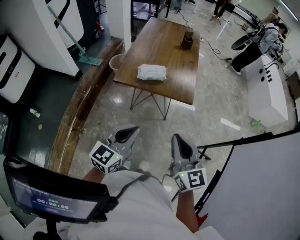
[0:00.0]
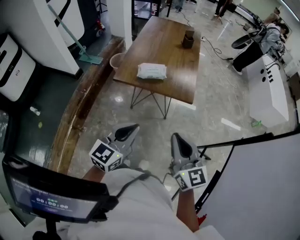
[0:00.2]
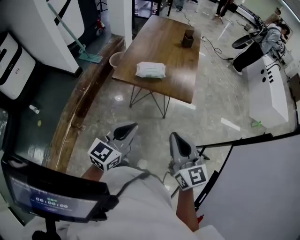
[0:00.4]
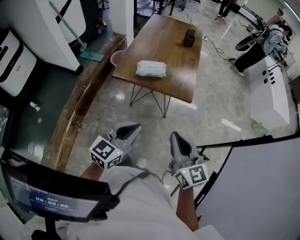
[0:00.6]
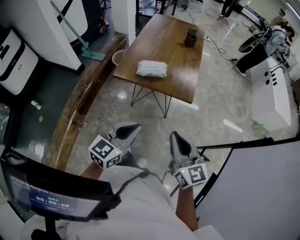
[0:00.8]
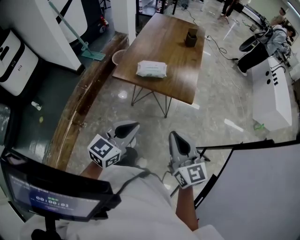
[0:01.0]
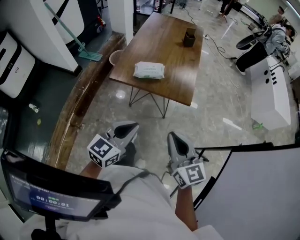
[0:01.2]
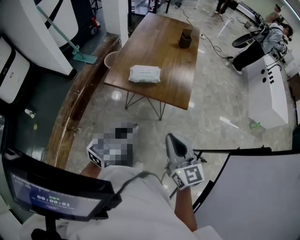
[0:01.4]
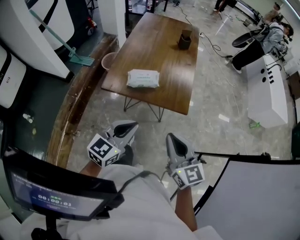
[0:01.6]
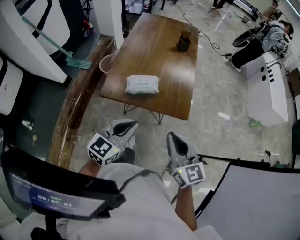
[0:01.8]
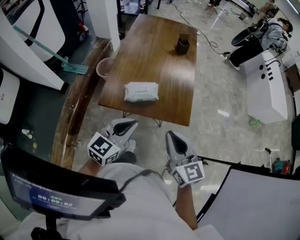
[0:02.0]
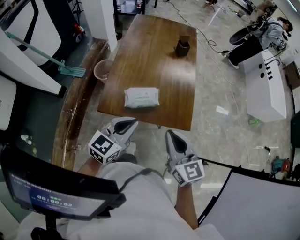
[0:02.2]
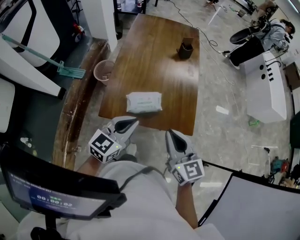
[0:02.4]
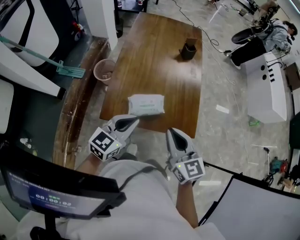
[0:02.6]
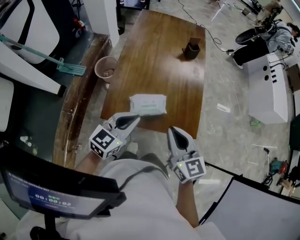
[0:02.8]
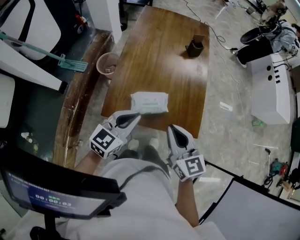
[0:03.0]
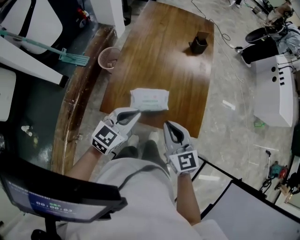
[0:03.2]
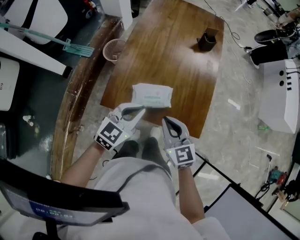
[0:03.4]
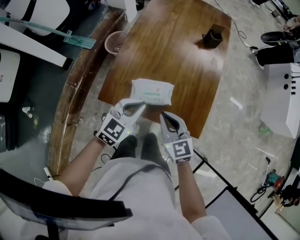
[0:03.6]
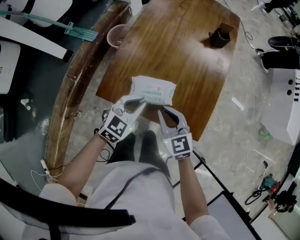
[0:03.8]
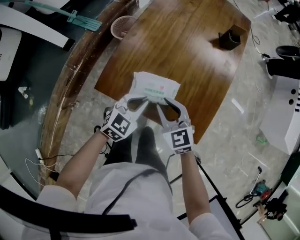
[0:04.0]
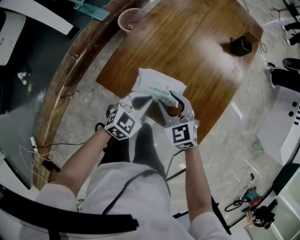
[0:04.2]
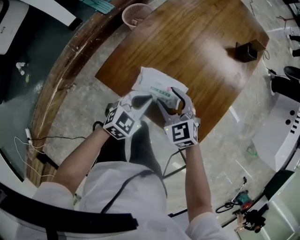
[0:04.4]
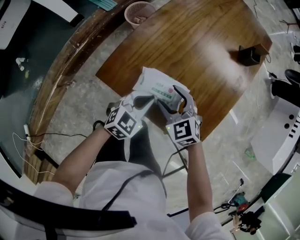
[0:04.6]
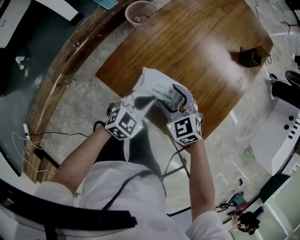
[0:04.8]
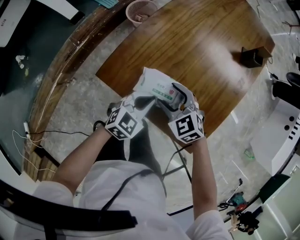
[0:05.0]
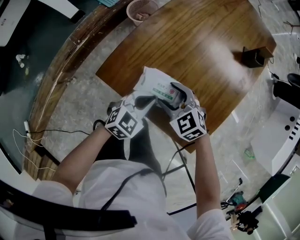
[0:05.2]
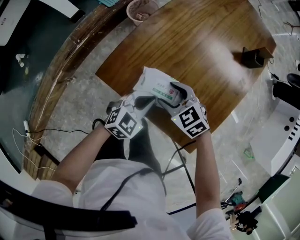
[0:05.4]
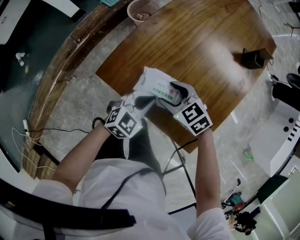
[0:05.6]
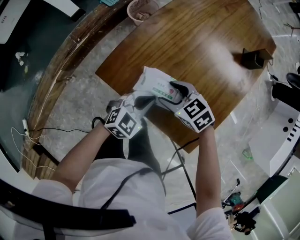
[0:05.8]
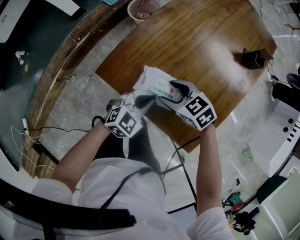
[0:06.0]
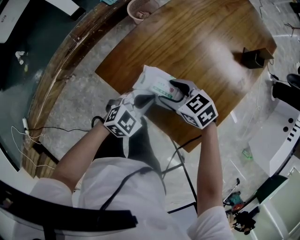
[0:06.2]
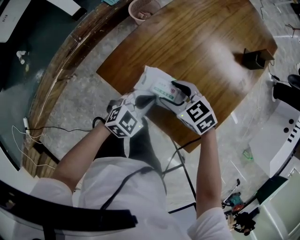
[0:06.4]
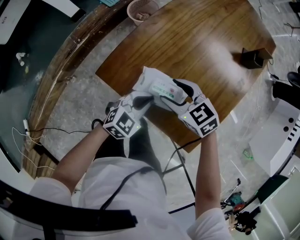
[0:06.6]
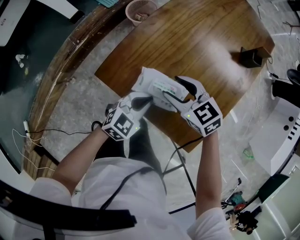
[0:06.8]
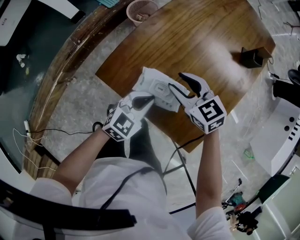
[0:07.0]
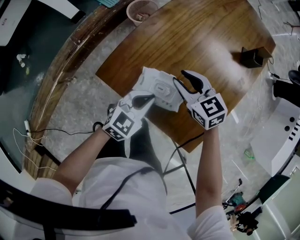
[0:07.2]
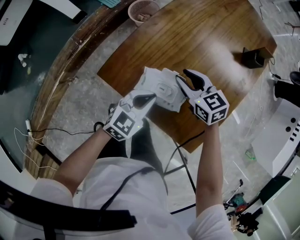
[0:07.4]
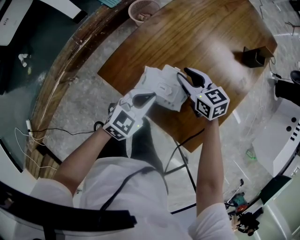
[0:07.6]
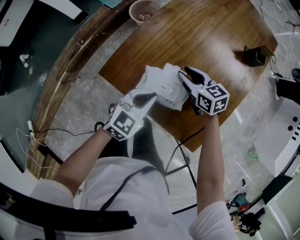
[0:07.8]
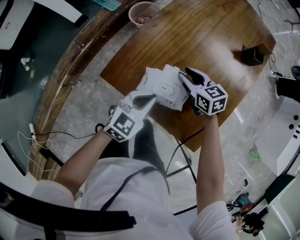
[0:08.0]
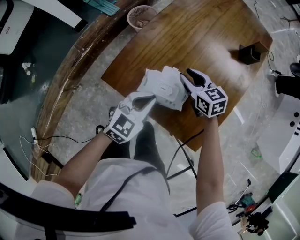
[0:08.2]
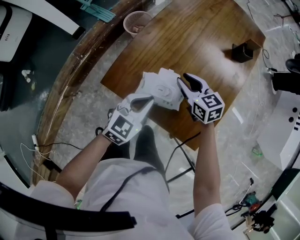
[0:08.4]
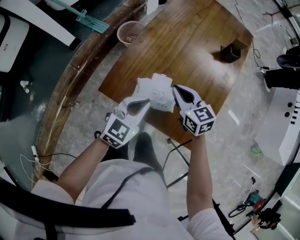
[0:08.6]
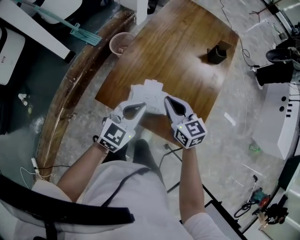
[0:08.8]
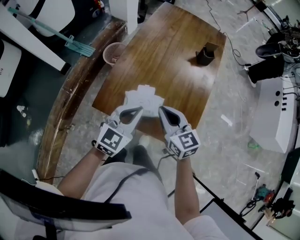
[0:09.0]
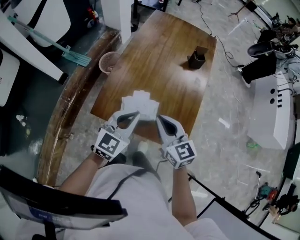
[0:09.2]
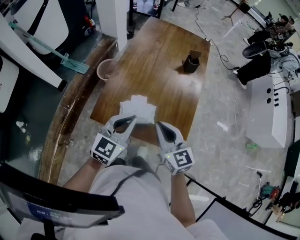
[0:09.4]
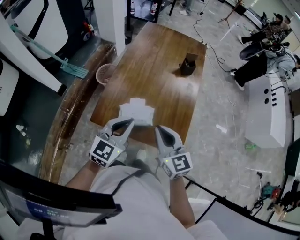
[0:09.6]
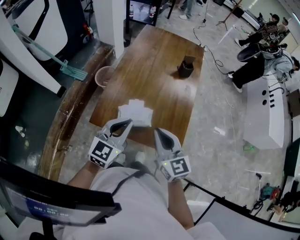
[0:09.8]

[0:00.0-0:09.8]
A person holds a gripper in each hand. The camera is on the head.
0:00.0 to 0:01.4: The two grippers go roughly 10 cm forward.
0:01.4 to 0:02.8: Both grippers move forward and to the left, roughly 30 cm.
0:02.8 to 0:04.2: The left gripper travels downward by some 20 cm, and rotates roughly 20 degrees, while the right gripper travels downward and forward by roughly 25 cm, rotates roughly 50 degrees, and opens its fingers.
0:04.2 to 0:05.6: The right gripper changes place by approximately 5 cm, swivels some 30 degrees, and opens up.
0:05.6 to 0:07.0: The right gripper goes roughly 5 cm upward.
0:07.0 to 0:08.4: The left gripper is displaced upward by roughly 5 cm.
0:08.4 to 0:09.8: The left gripper goes about 15 cm upward. The right gripper is displaced upward and backward by approximately 25 cm, changes its angle by approximately 30 degrees, and closes up.

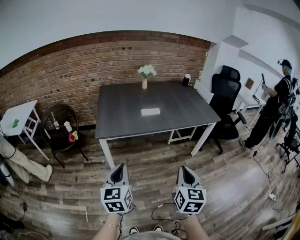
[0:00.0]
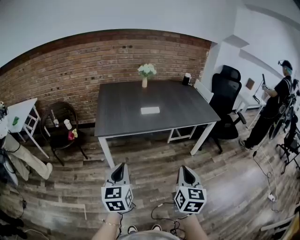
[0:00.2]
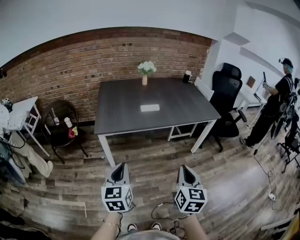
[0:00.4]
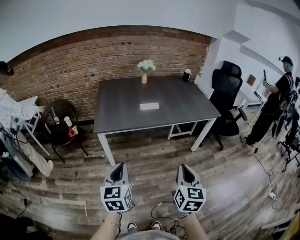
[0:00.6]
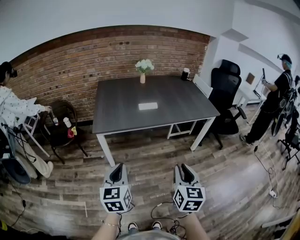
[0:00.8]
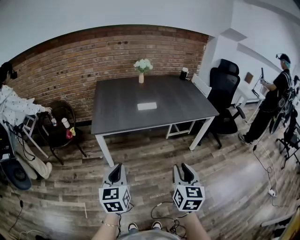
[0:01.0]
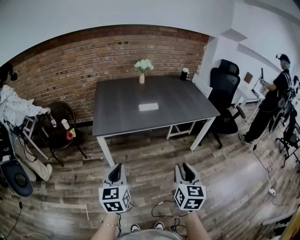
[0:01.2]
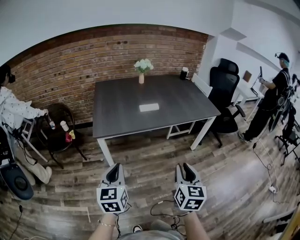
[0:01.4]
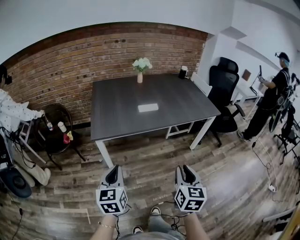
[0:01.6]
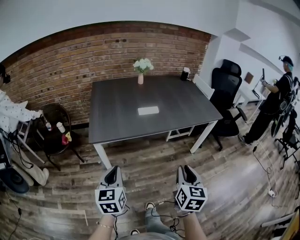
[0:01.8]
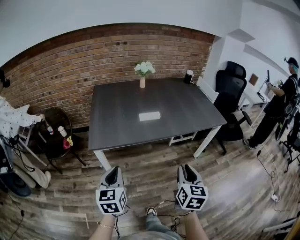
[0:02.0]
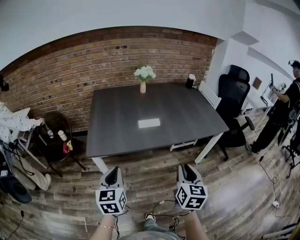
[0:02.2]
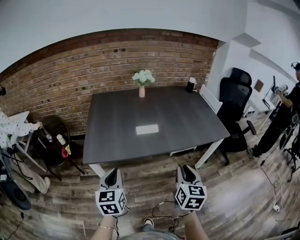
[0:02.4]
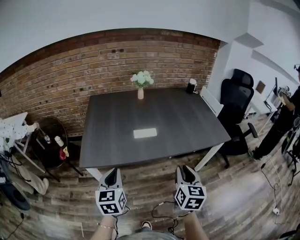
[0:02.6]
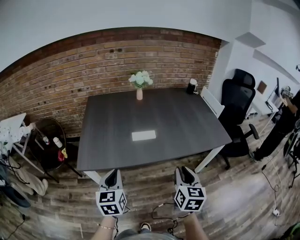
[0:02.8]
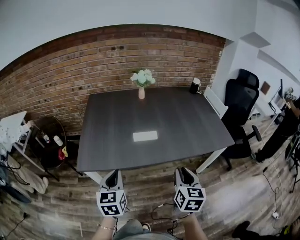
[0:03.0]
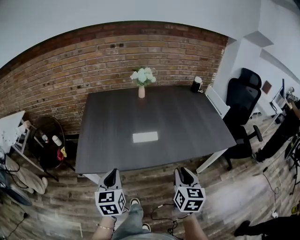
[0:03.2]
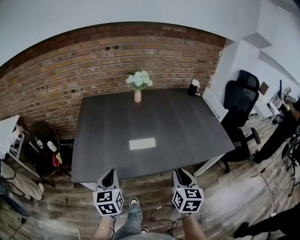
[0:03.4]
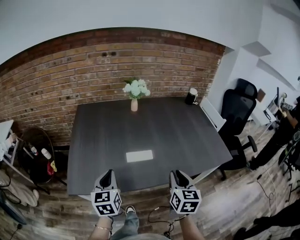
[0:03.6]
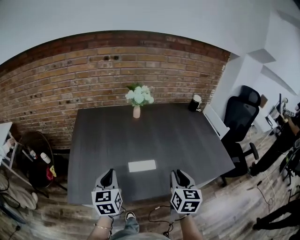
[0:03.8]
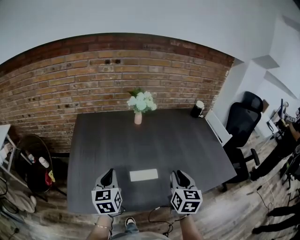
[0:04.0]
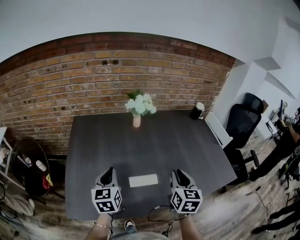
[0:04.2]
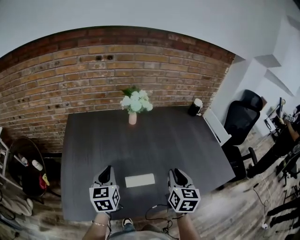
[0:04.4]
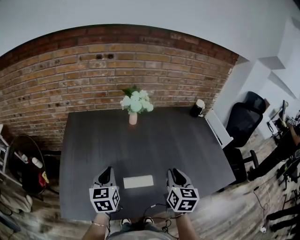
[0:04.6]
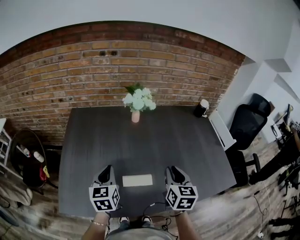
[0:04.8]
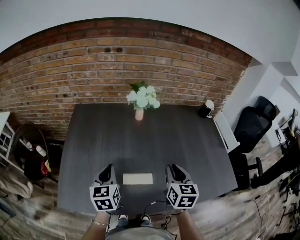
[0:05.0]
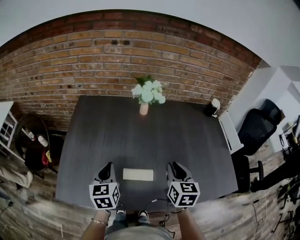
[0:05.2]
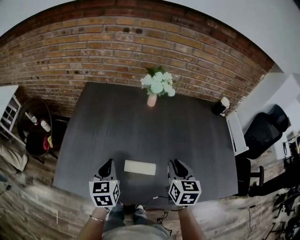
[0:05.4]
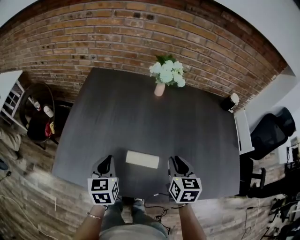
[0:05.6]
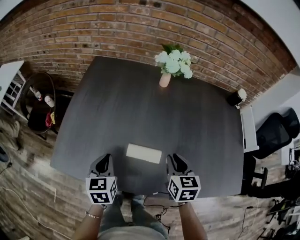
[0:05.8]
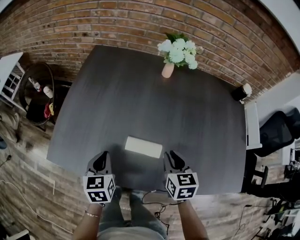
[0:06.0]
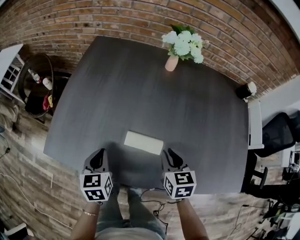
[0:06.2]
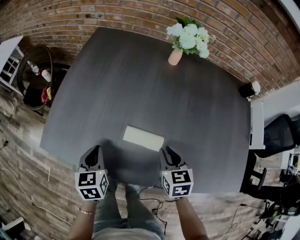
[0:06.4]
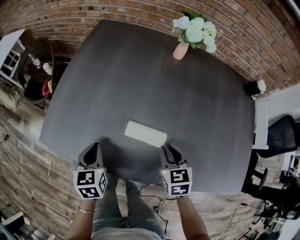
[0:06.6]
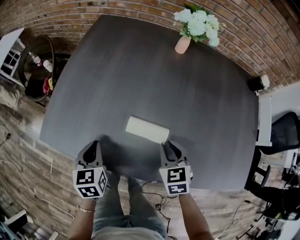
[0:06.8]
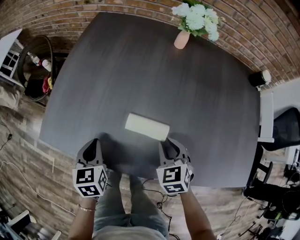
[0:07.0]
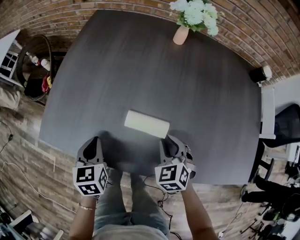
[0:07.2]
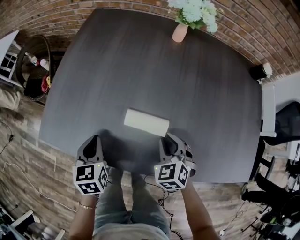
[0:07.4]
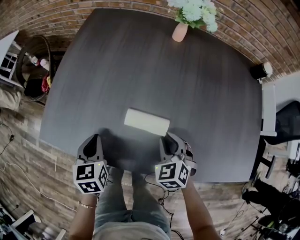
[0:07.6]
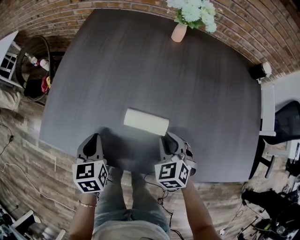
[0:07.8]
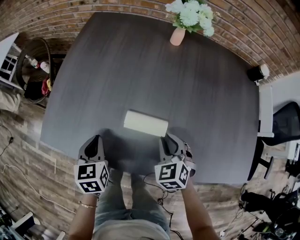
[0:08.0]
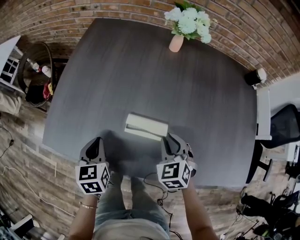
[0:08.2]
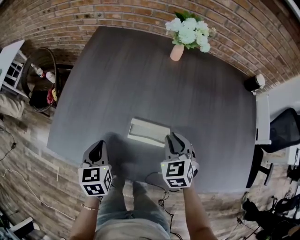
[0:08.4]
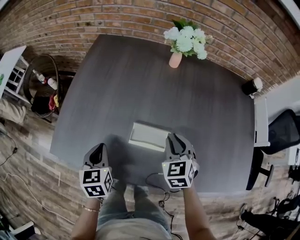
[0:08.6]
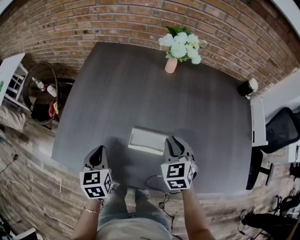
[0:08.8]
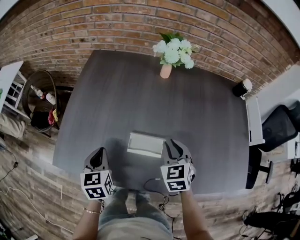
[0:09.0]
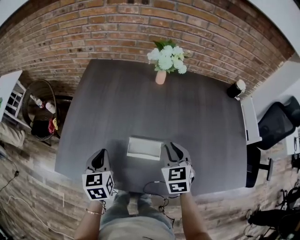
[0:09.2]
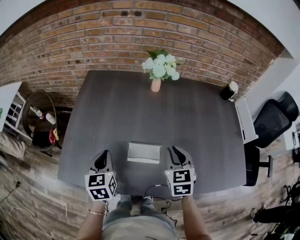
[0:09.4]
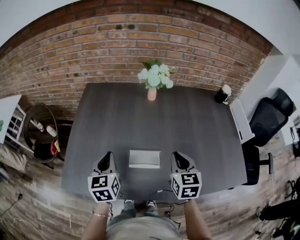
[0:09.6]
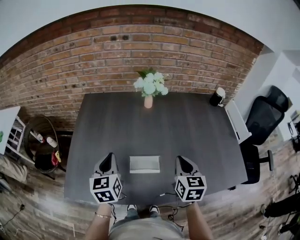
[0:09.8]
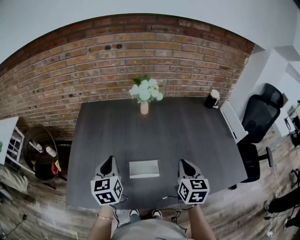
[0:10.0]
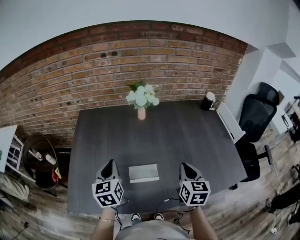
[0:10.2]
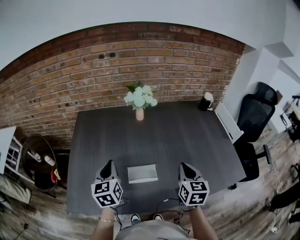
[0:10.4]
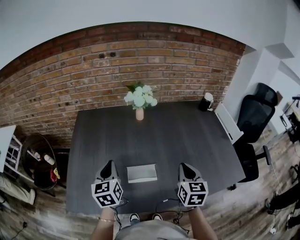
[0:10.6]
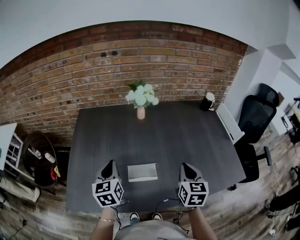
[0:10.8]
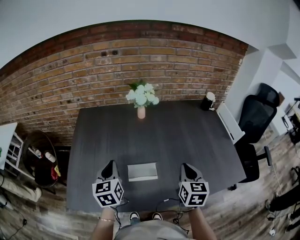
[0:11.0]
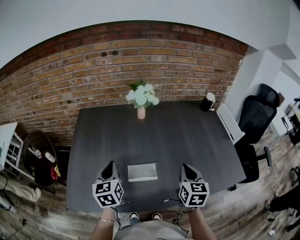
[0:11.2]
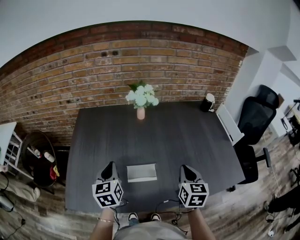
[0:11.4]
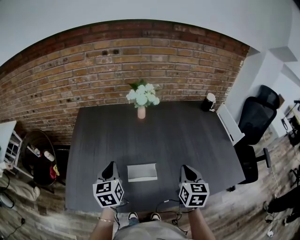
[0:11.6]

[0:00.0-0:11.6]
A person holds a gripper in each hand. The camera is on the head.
0:00.0 to 0:01.4: The right gripper opens its fingers.
0:01.4 to 0:02.8: Both grippers move forward, roughly 30 cm.
0:02.8 to 0:04.4: Both grippers travel together forward, approximately 35 cm.
0:04.4 to 0:05.8: The left gripper shifts roughly 15 cm downward and backward, and swivels roughly 20 degrees, while the right gripper moves downward, approximately 10 cm, and swivels about 30 degrees.
0:05.8 to 0:07.2: The right gripper shifts approximately 10 cm downward, and changes its angle by approximately 40 degrees. Meanwhile the left gripper goes roughly 10 cm downward.
0:07.2 to 0:08.8: The right gripper is displaced upward and forward by roughly 10 cm, while the left gripper moves upward, roughly 5 cm.
0:08.8 to 0:10.2: The right gripper heads upward, to the right and backward, covering roughly 15 cm, and rotates approximately 40 degrees; the left gripper shifts about 15 cm upward and forward, and turns by roughly 20 degrees.
0:10.2 to 0:11.6: The grippers move only a little.

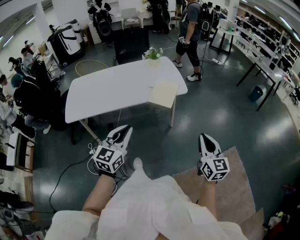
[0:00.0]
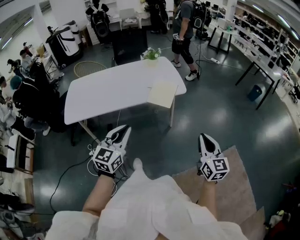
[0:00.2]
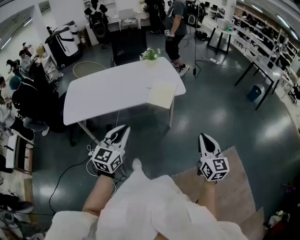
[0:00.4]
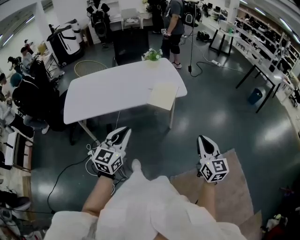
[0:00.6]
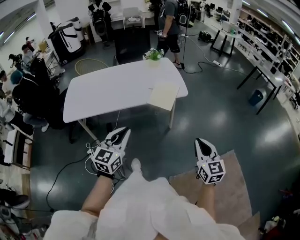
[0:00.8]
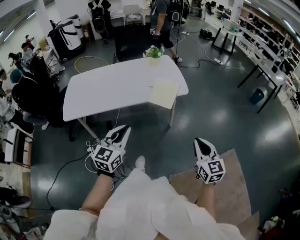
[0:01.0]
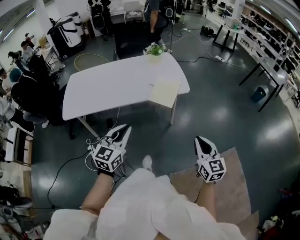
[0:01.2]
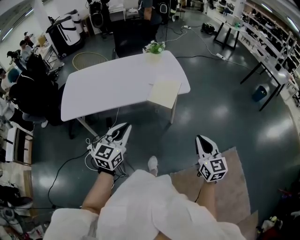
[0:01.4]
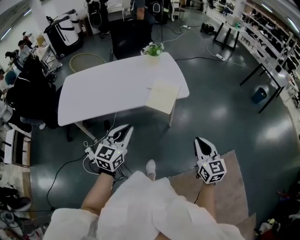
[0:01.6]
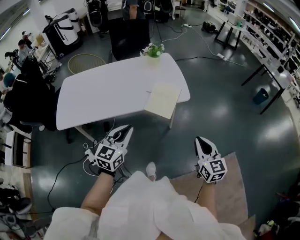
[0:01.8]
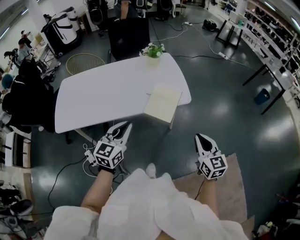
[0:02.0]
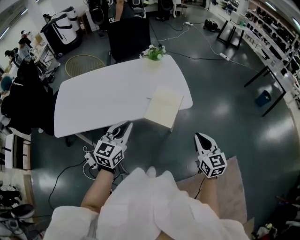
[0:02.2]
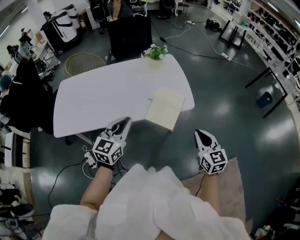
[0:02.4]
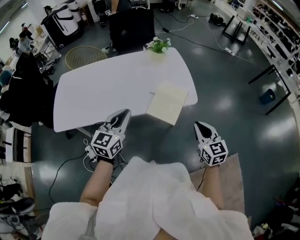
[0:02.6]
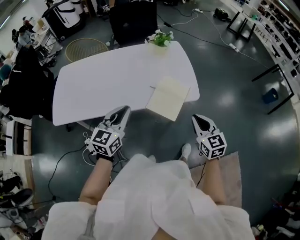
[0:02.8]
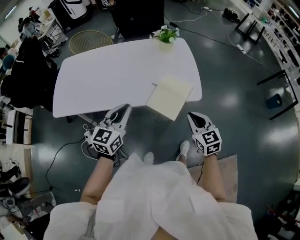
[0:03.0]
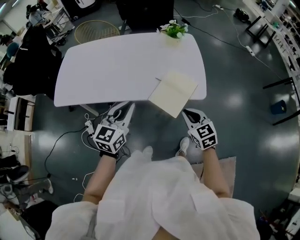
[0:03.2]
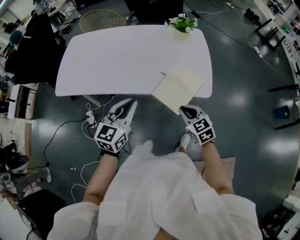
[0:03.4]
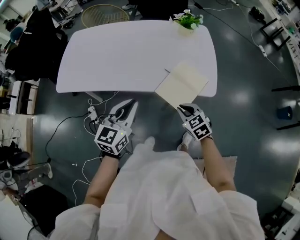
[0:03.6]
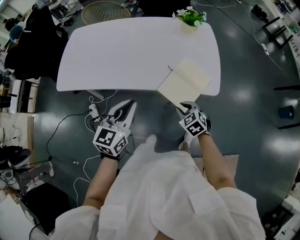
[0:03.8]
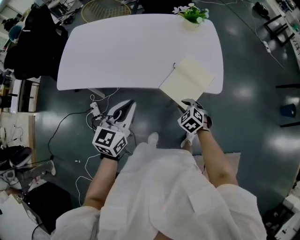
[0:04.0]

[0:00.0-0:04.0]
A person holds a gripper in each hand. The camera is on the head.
0:00.0 to 0:01.4: The grippers both shift forward by some 10 cm.
0:01.4 to 0:02.6: Both grippers travel together forward, roughly 25 cm.
0:02.6 to 0:04.0: The left gripper heads downward, covering roughly 10 cm. The right gripper is displaced downward, forward and to the left by roughly 30 cm, points its fingers roughly 40 degrees further downward, and opens up.
